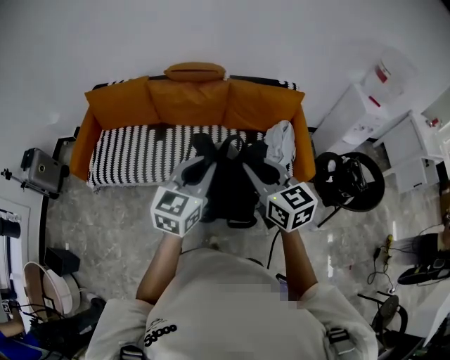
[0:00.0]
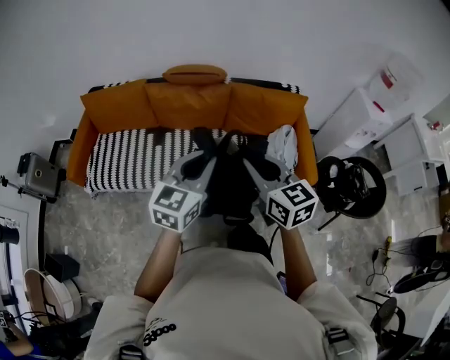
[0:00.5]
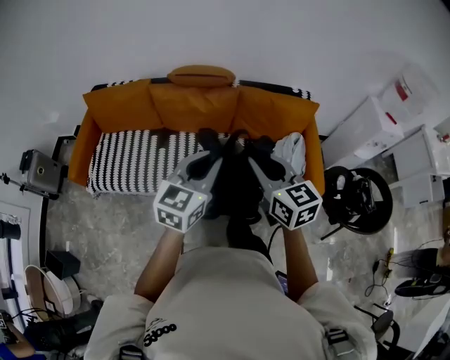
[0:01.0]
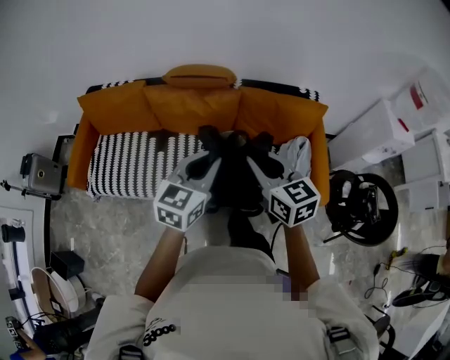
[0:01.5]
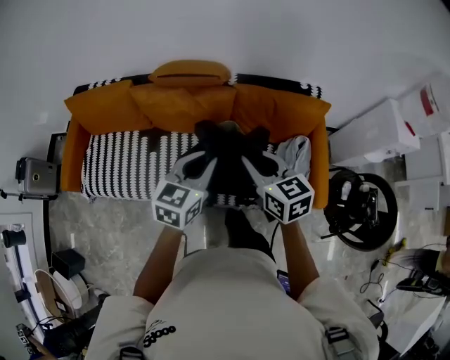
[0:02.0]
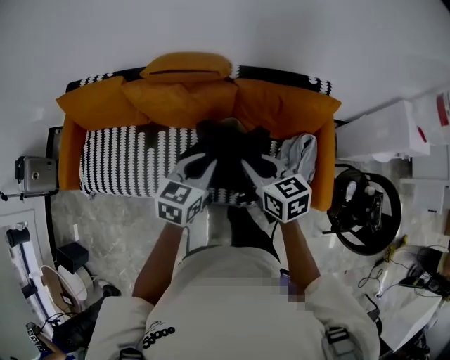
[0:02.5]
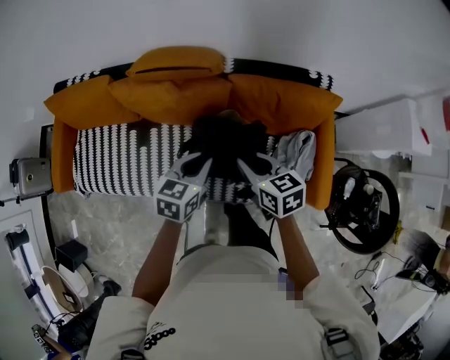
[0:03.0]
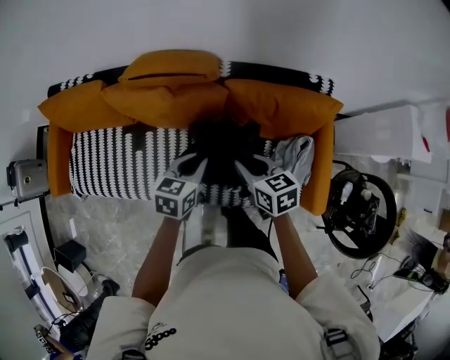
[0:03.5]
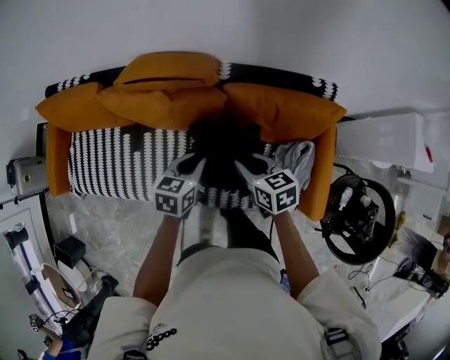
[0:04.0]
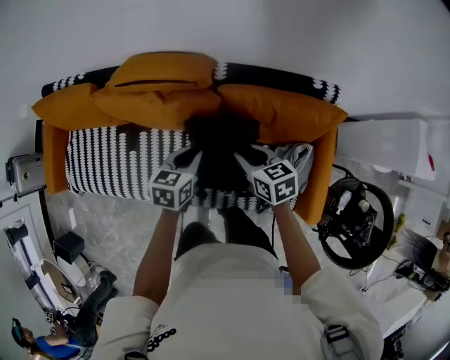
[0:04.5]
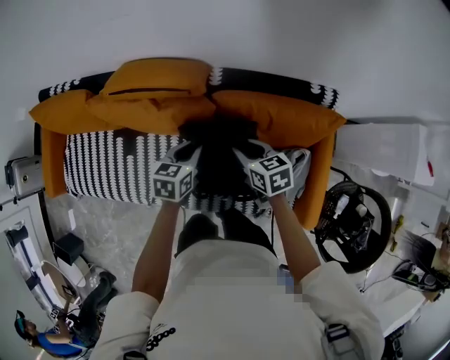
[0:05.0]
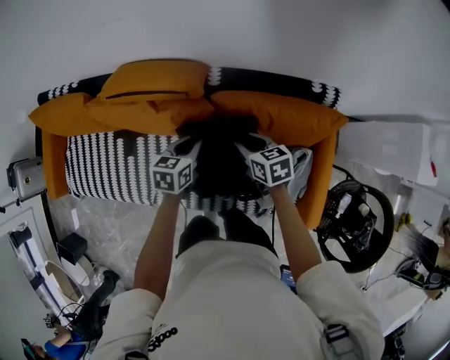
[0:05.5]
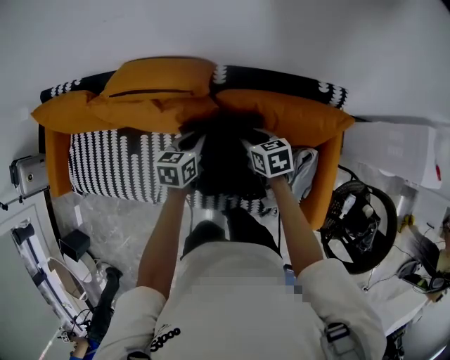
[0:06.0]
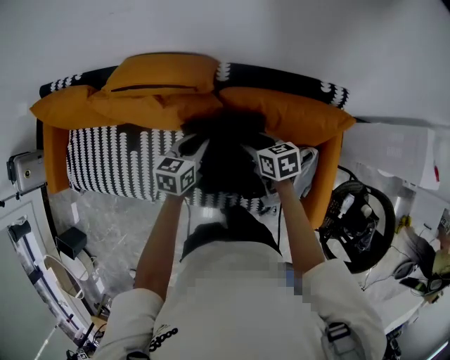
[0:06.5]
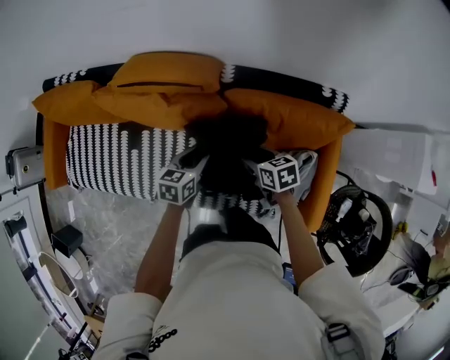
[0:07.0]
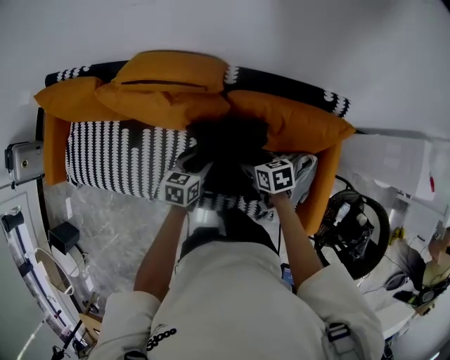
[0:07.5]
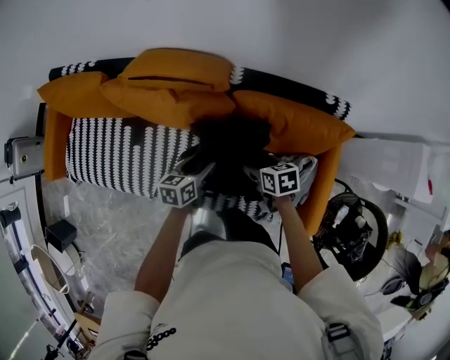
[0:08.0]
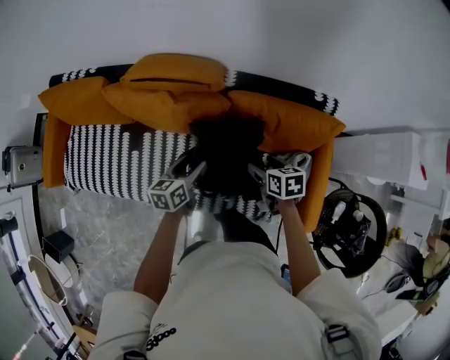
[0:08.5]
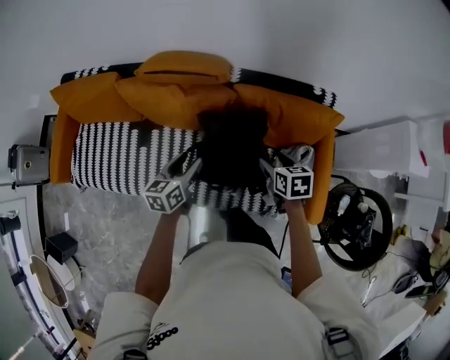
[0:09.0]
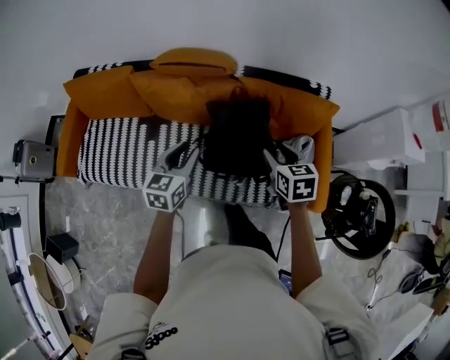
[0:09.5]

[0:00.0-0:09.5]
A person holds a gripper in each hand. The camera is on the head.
0:00.0 to 0:02.0: The two grippers go approximately 30 cm forward.
0:02.0 to 0:04.0: The two grippers go approximately 25 cm downward and forward. The left gripper rotates about 20 degrees, while the right gripper turns by about 20 degrees.
0:04.0 to 0:05.5: The left gripper heads forward and downward, covering roughly 10 cm. Meanwhile the right gripper goes about 15 cm forward, downward and to the right.
0:05.5 to 0:07.5: The two grippers go about 10 cm backward and downward. The right gripper opens. The left gripper opens up.
0:07.5 to 0:09.5: The right gripper moves upward and backward, some 25 cm, and changes its angle by approximately 30 degrees; the left gripper heads upward, backward and to the left, covering approximately 25 cm, and turns by about 30 degrees.

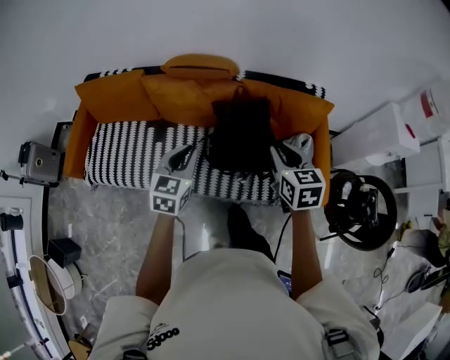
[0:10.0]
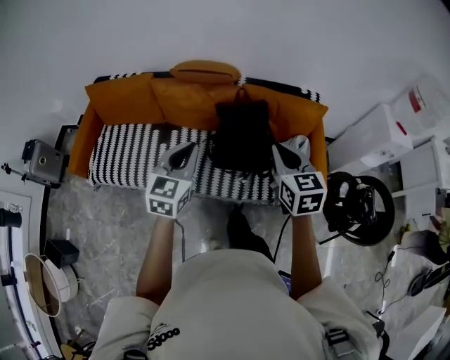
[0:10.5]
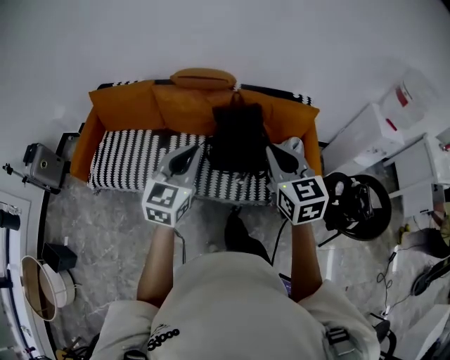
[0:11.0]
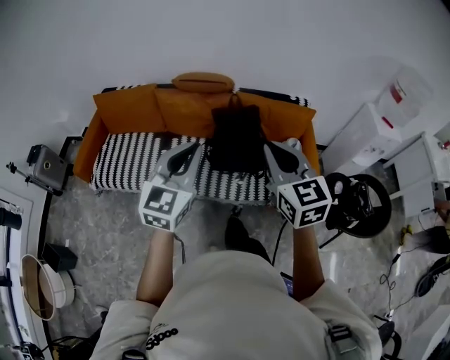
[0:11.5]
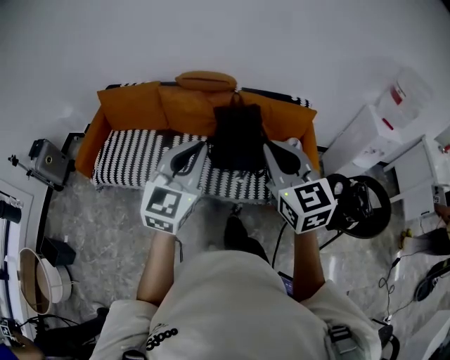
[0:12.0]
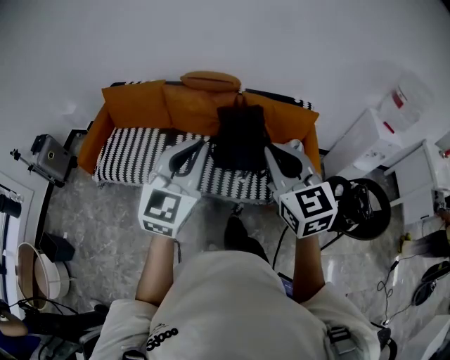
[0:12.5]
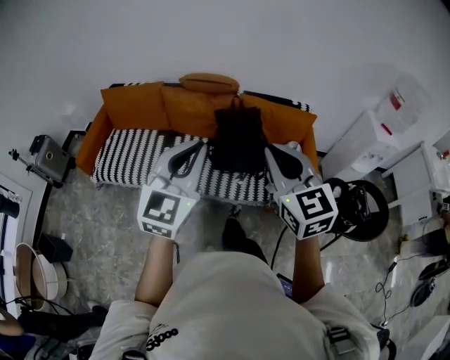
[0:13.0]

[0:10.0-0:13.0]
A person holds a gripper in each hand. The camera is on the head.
0:10.0 to 0:11.5: Both grippers travel together backward and upward, roughly 30 cm. The right gripper changes its angle by roughly 20 degrees, while the left gripper turns by approximately 20 degrees.
0:11.5 to 0:13.0: Both grippers travel together backward, some 5 cm.

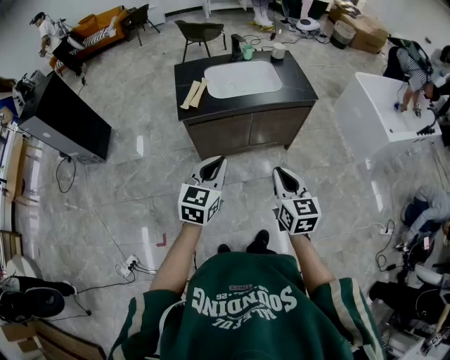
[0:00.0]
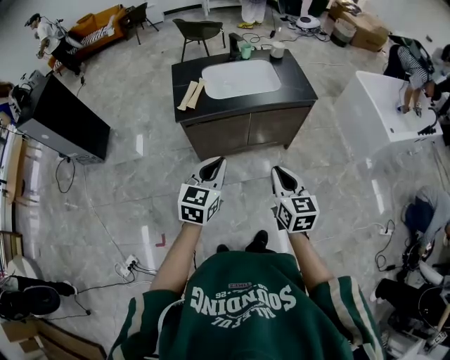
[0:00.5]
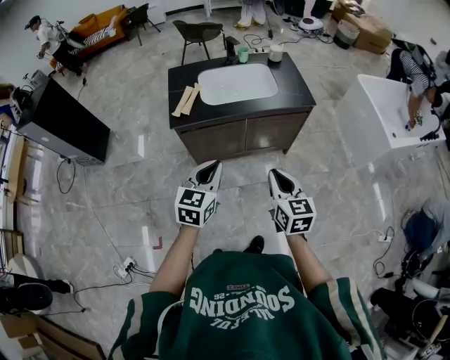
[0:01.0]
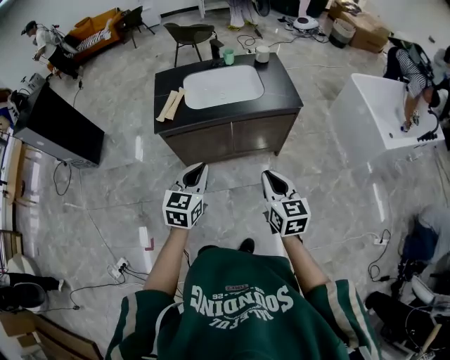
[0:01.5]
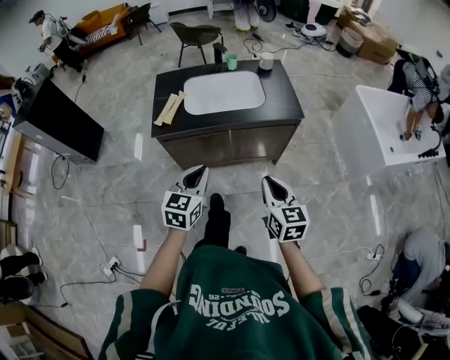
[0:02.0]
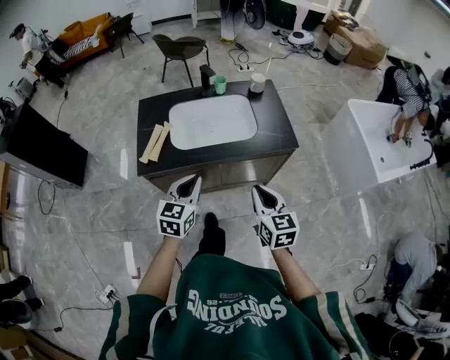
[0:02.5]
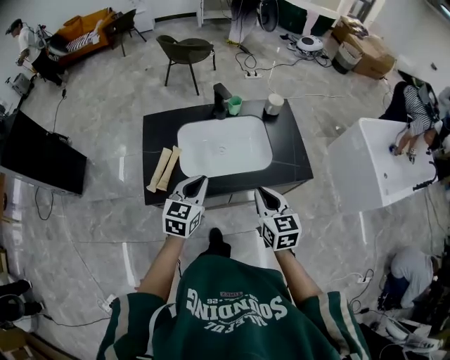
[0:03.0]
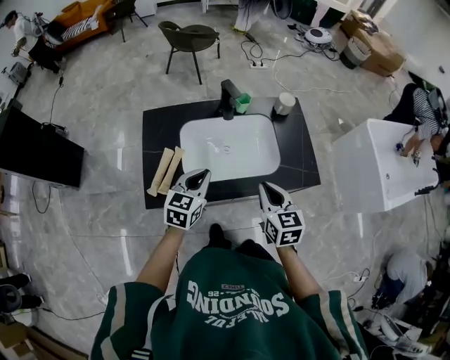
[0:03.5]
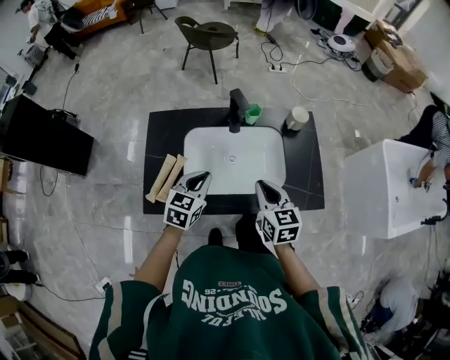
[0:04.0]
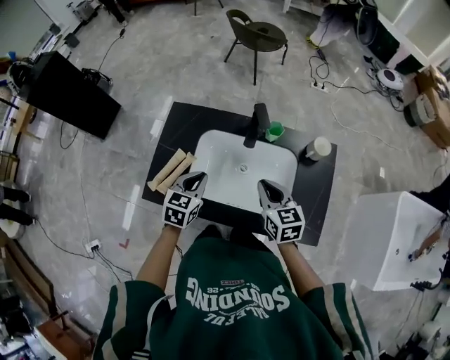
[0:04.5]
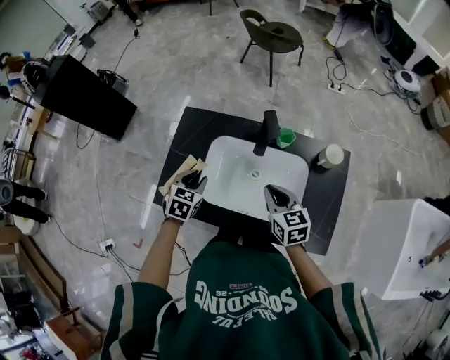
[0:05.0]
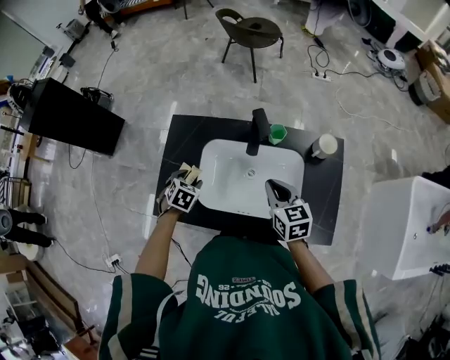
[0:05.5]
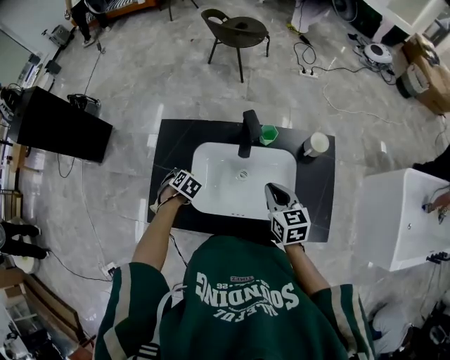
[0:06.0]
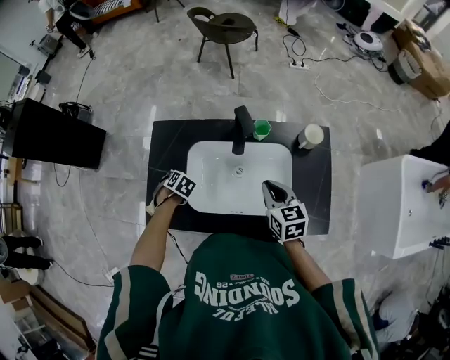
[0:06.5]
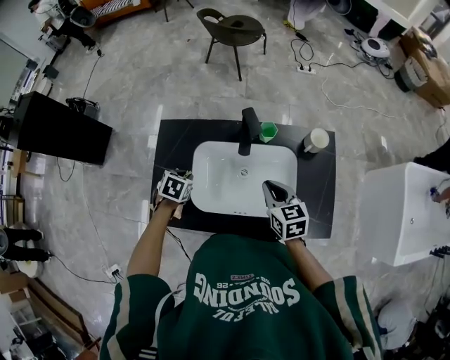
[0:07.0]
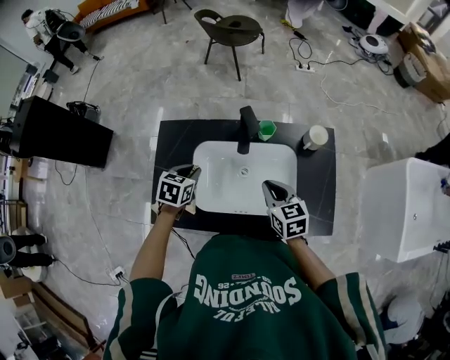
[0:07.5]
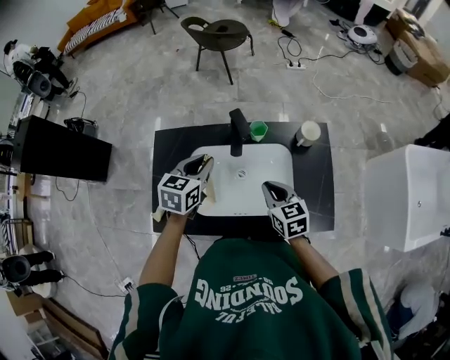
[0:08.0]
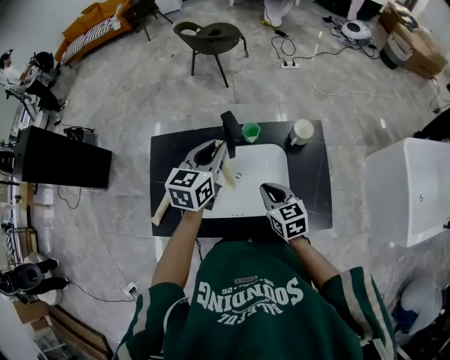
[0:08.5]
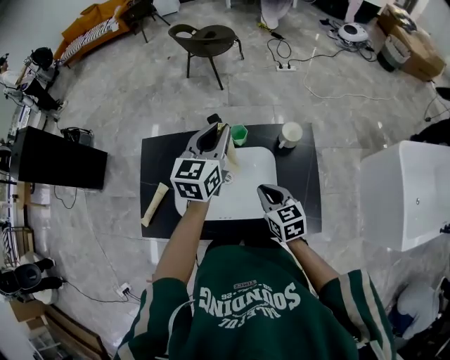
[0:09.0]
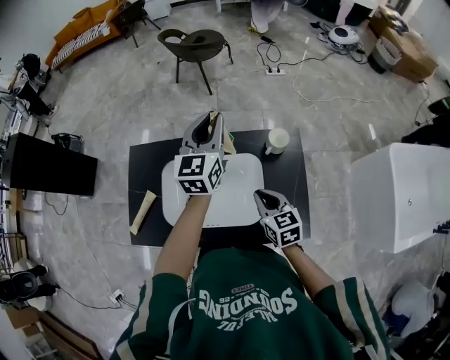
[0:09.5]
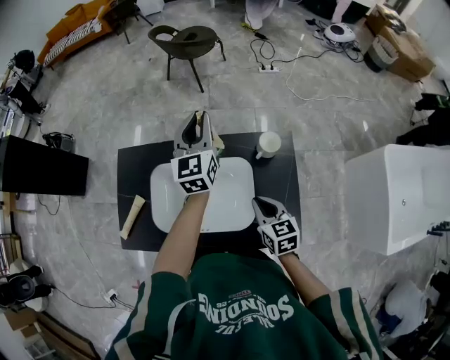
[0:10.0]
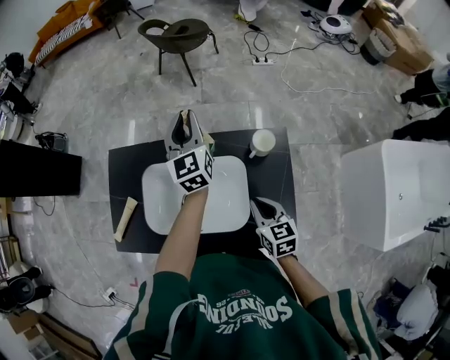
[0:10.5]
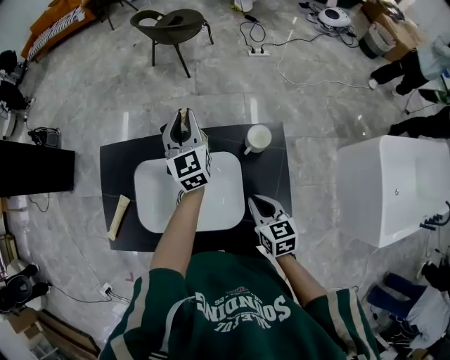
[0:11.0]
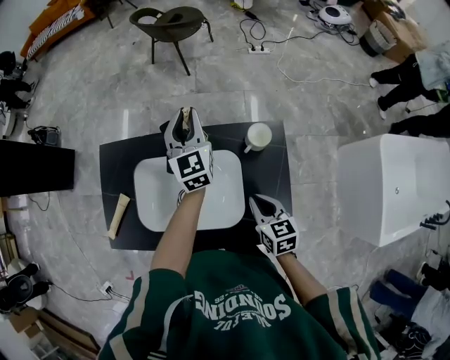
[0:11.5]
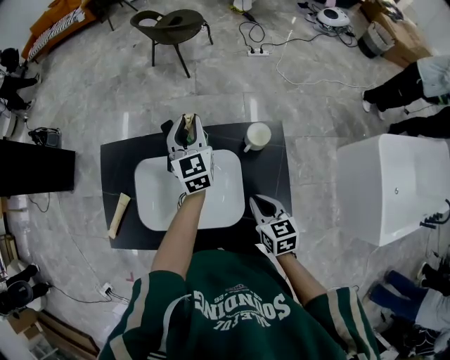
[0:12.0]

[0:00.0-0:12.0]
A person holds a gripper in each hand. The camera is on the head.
0:00.0 to 0:02.0: The right gripper heads to the right and forward, covering approximately 20 cm, while the left gripper moves forward and to the right, some 15 cm.
0:02.0 to 0:04.0: The pair of grippers is taken forward, roughly 50 cm.
0:04.0 to 0:06.0: The left gripper goes about 20 cm downward, tips its fingers downward by roughly 50 degrees, and opens its fingers. Meanwhile the right gripper changes place by about 10 cm.
0:06.0 to 0:08.0: The left gripper goes about 25 cm upward, angles its fingers upward, by about 50 degrees, and closes up.
0:08.0 to 0:10.0: The left gripper is displaced to the right, forward and upward by roughly 25 cm, and tips its fingers upward by approximately 30 degrees; the right gripper goes some 15 cm to the right.
0:10.0 to 0:12.0: The left gripper goes about 10 cm downward.

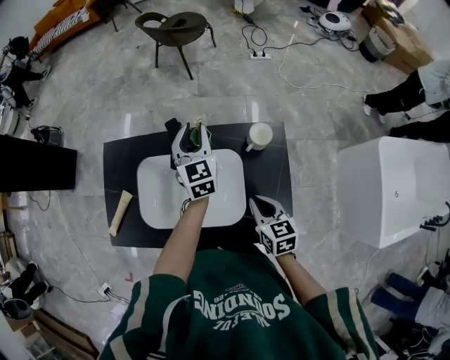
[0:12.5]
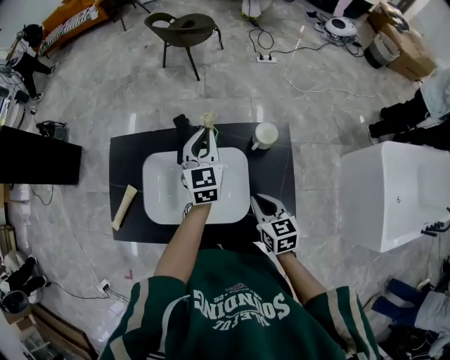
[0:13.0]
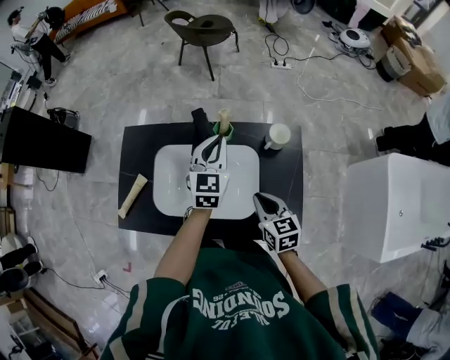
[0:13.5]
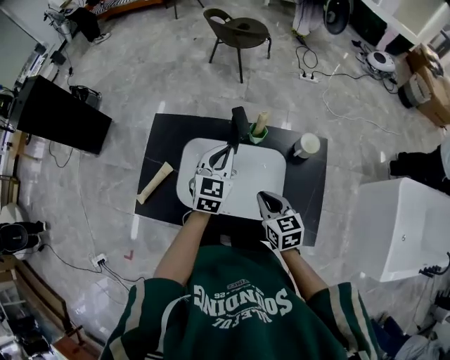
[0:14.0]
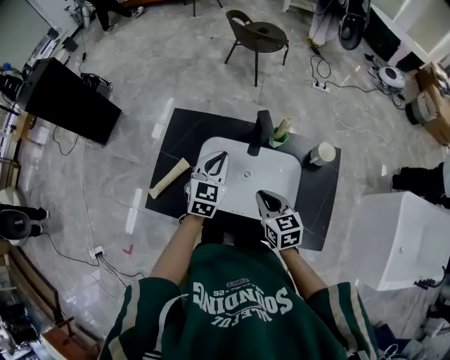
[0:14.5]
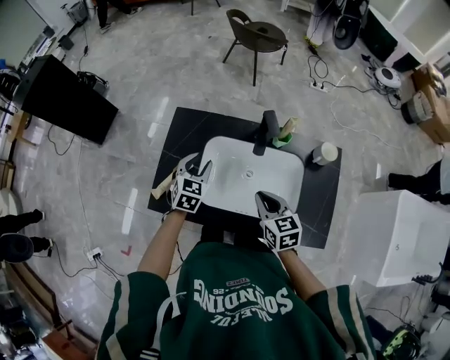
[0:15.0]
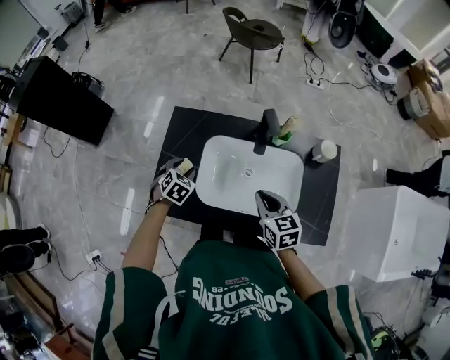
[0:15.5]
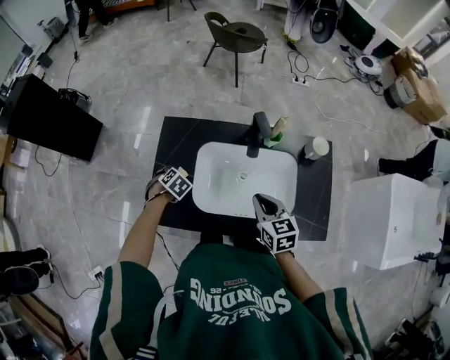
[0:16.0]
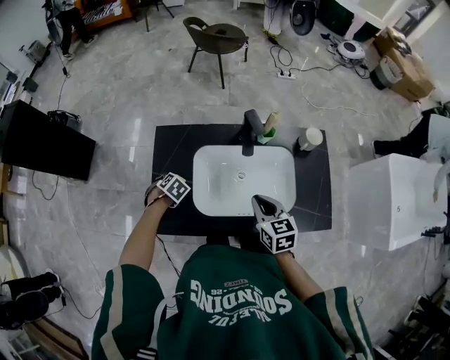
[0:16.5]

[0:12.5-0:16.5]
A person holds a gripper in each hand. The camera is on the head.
0:12.5 to 0:14.5: The left gripper shifts some 25 cm to the left and backward, and closes up, while the right gripper heads to the left, covering approximately 20 cm.
0:14.5 to 0:16.5: The left gripper heads downward, covering roughly 25 cm, tips its fingers downward by approximately 60 degrees, and opens up.
